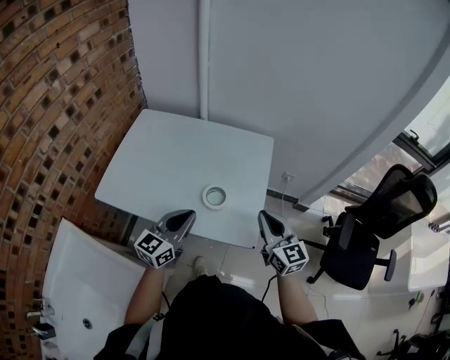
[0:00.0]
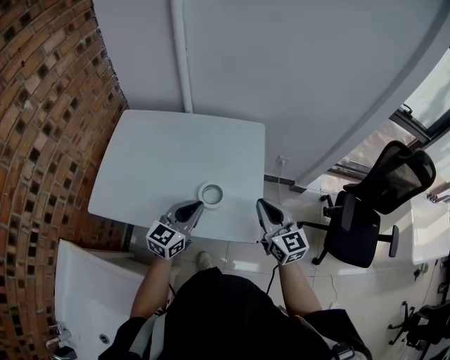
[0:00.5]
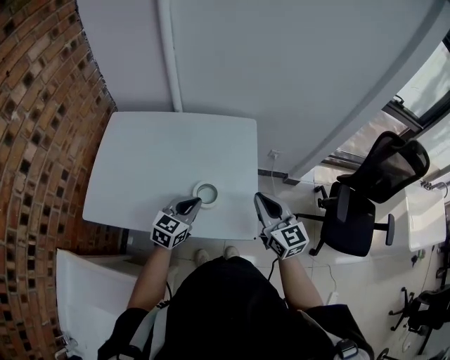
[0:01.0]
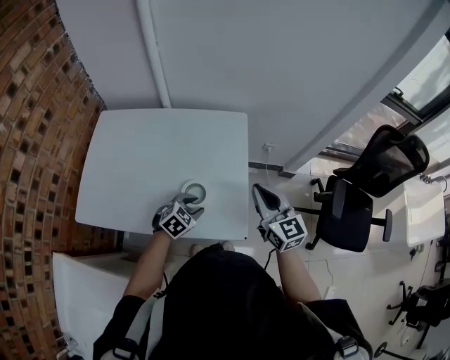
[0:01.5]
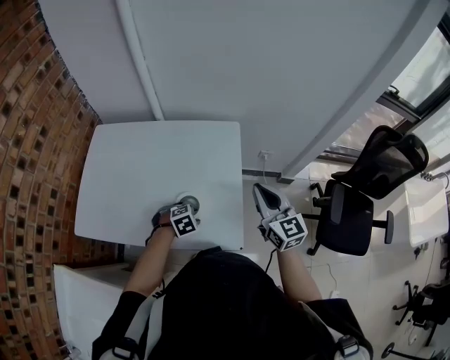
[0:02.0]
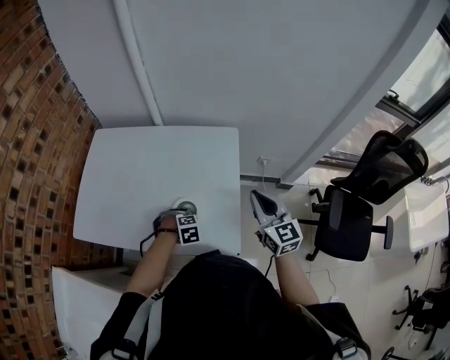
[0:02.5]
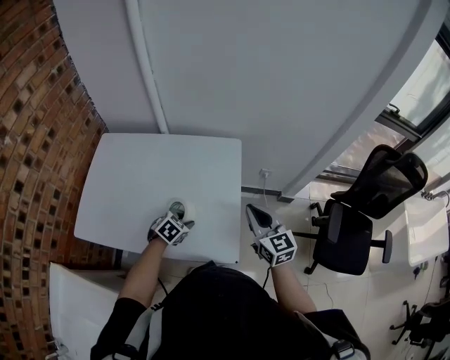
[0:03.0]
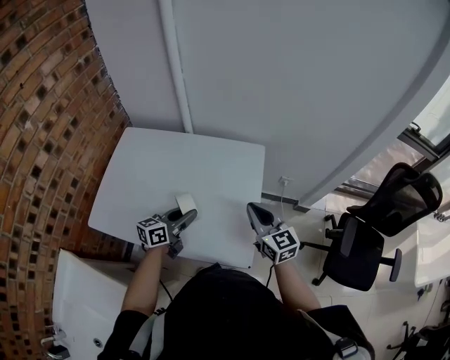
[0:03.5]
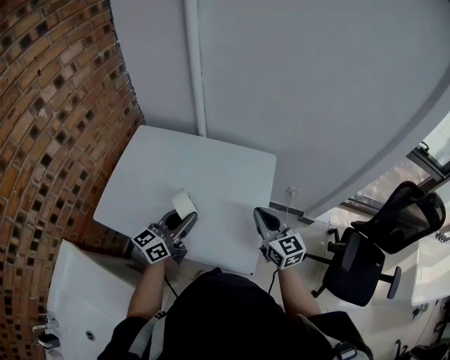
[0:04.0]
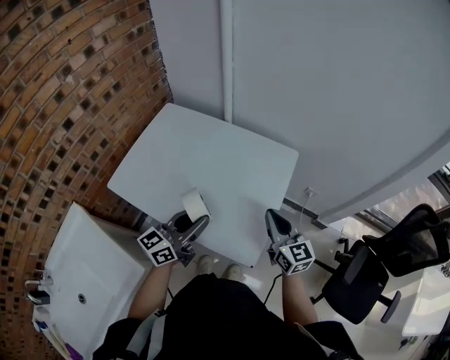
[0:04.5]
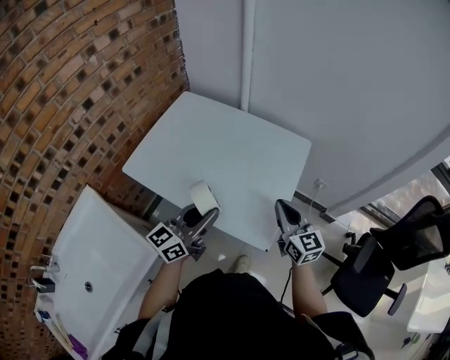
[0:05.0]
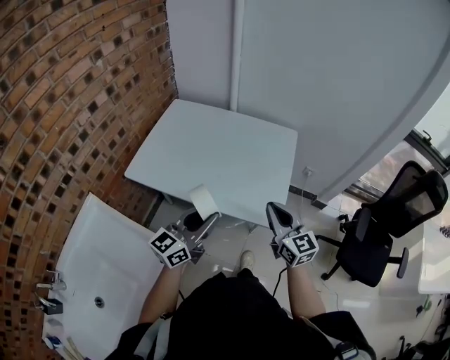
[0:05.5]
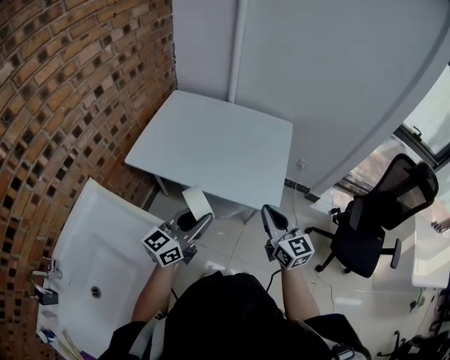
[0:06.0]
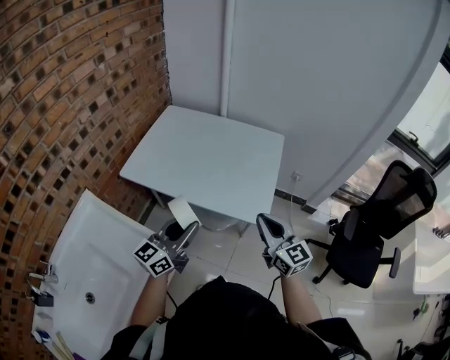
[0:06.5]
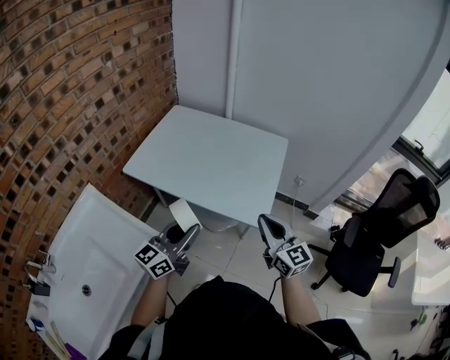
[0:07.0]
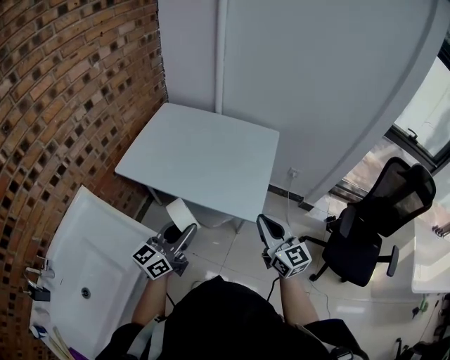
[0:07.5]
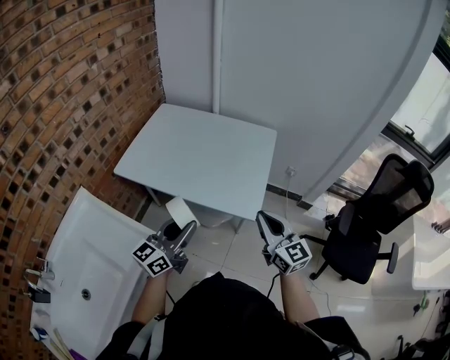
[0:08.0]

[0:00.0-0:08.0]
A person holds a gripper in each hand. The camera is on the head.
0:00.0 to 0:02.0: The left gripper travels downward by about 25 cm, tilts its fingers approximately 70 degrees downward, and opens, while the right gripper shifts by roughly 10 cm.
0:02.0 to 0:04.0: The left gripper shifts roughly 25 cm upward, and points its fingers roughly 70 degrees further upward; the right gripper shifts by approximately 10 cm.
0:04.0 to 0:06.0: The grippers both shift backward by some 25 cm.
0:06.0 to 0:08.0: The right gripper moves to the right, roughly 5 cm.

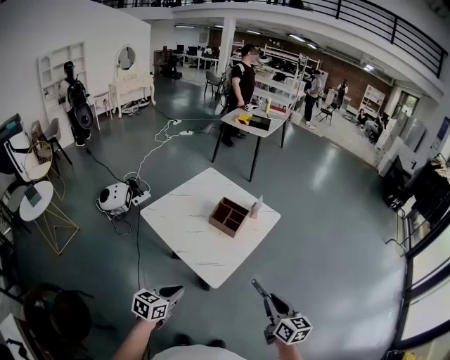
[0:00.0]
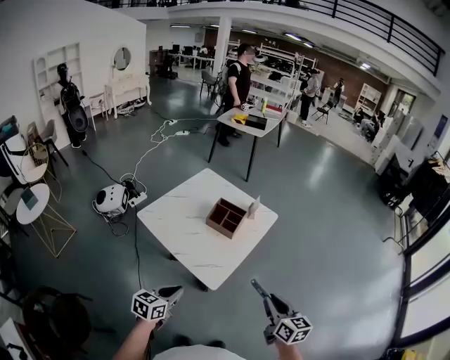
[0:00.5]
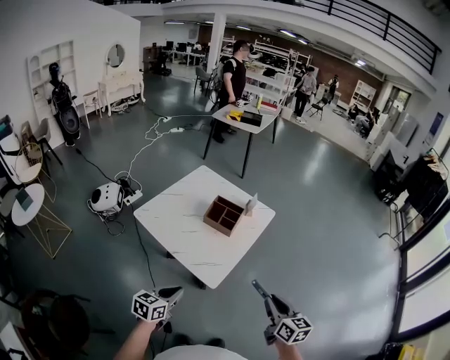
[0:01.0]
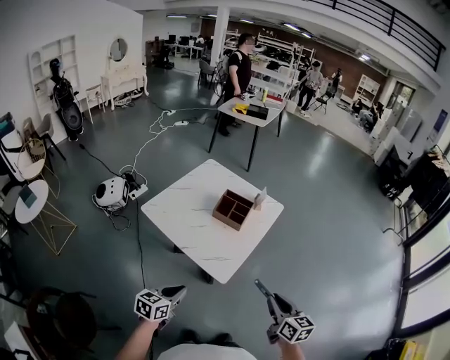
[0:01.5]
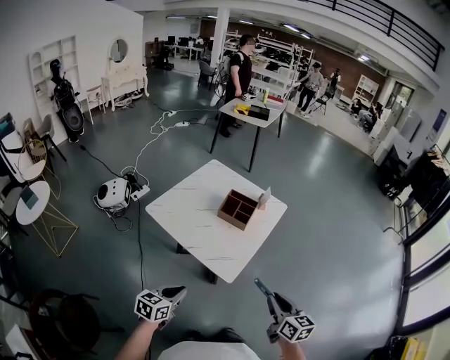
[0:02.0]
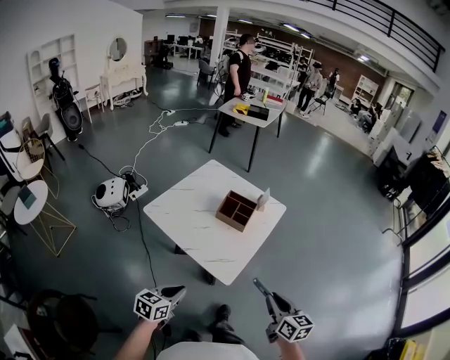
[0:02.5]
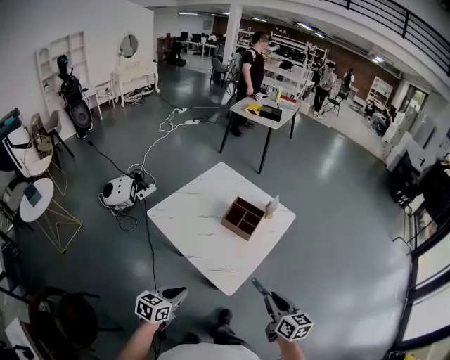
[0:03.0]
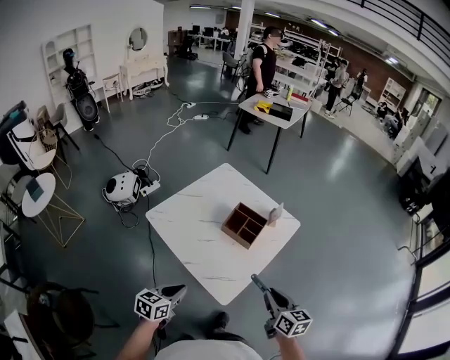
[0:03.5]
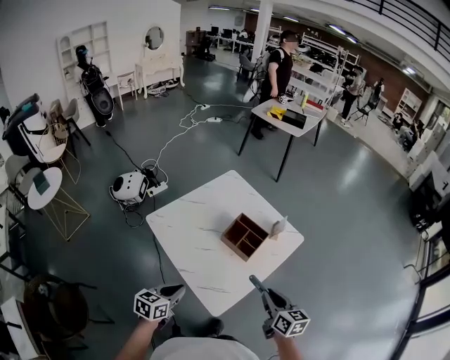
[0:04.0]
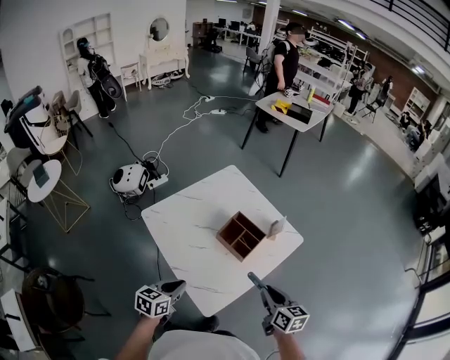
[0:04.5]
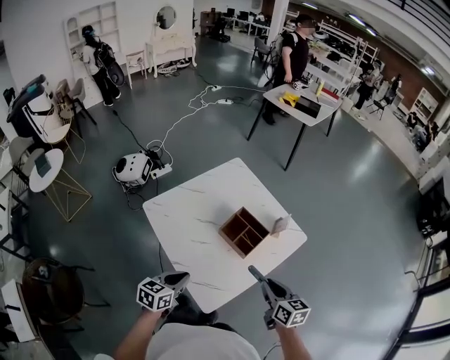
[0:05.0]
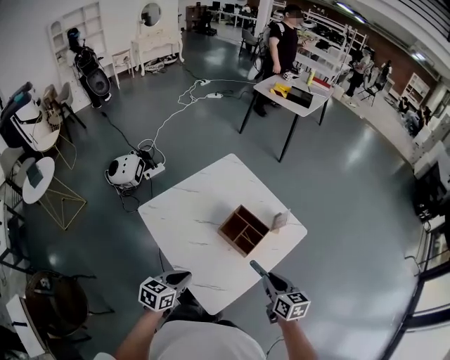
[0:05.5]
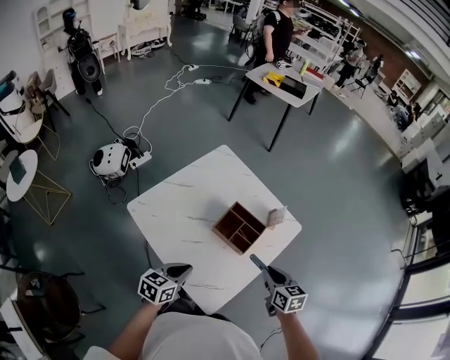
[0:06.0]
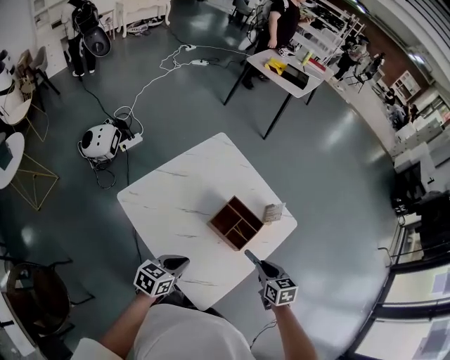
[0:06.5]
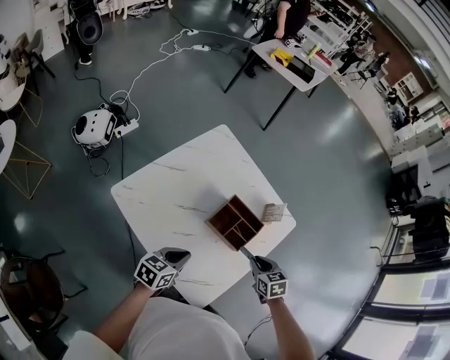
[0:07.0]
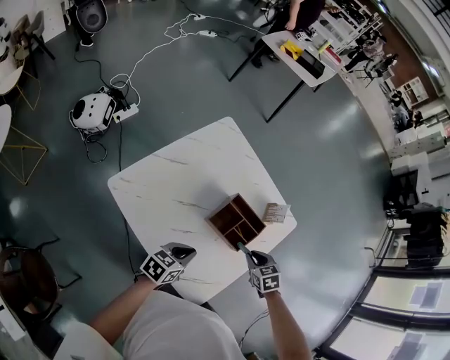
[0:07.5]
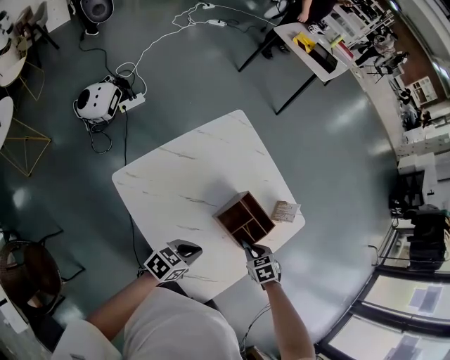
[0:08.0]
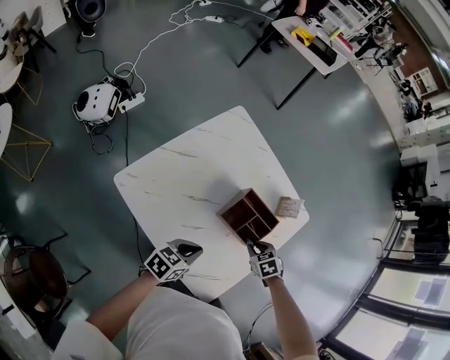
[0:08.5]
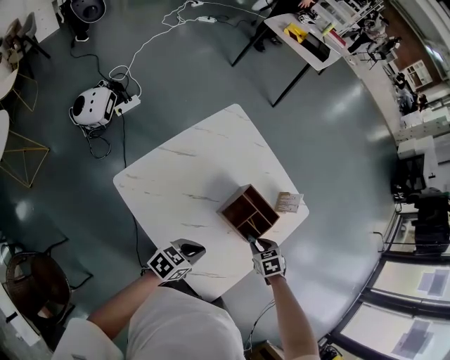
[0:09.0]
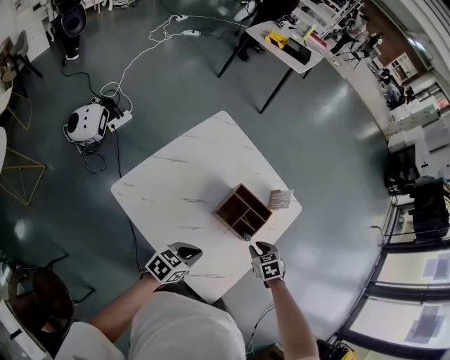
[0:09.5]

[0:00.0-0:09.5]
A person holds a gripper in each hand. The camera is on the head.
0:00.0 to 0:02.0: The two grippers go roughly 5 cm to the left.
0:02.0 to 0:04.0: The two grippers go about 25 cm forward.
0:04.0 to 0:05.5: Both grippers move forward, roughly 10 cm.
0:05.5 to 0:07.5: The left gripper heads forward and downward, covering approximately 15 cm, and swivels approximately 20 degrees; the right gripper is displaced downward, forward and to the left by roughly 20 cm, and tips its fingers downward by some 30 degrees.

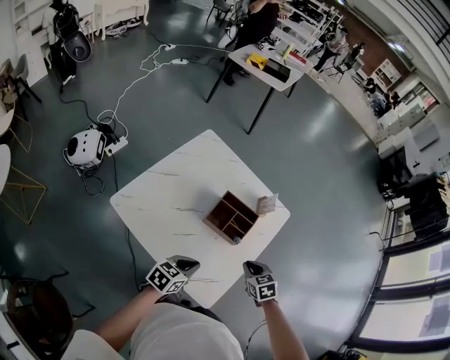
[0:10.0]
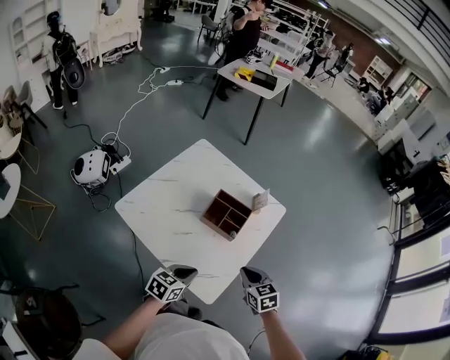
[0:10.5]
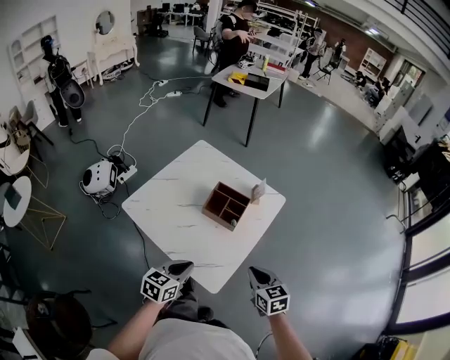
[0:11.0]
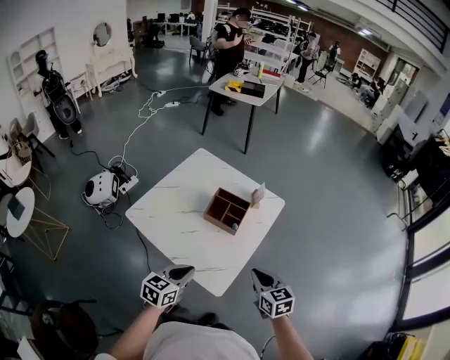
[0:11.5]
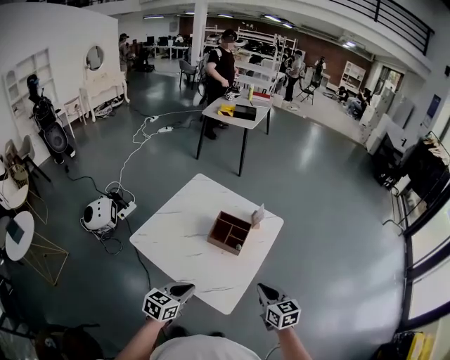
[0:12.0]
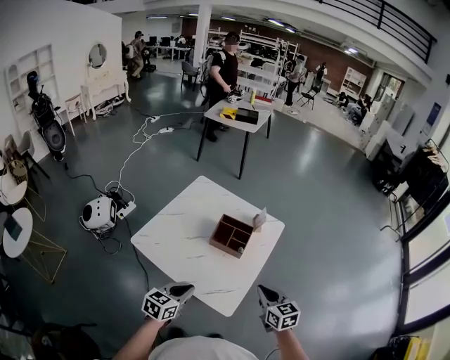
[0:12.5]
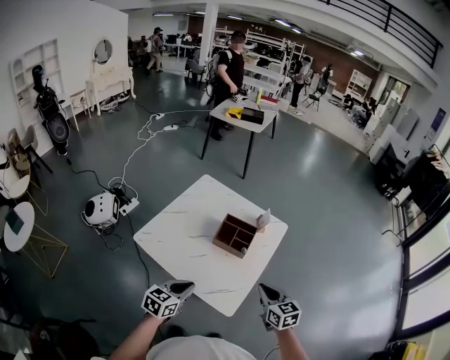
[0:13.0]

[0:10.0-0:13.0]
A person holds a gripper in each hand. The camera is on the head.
0:10.0 to 0:11.5: Both grippers move backward and upward, roughly 20 cm. The right gripper turns by some 30 degrees.
0:11.5 to 0:13.0: The left gripper goes roughly 5 cm to the left.

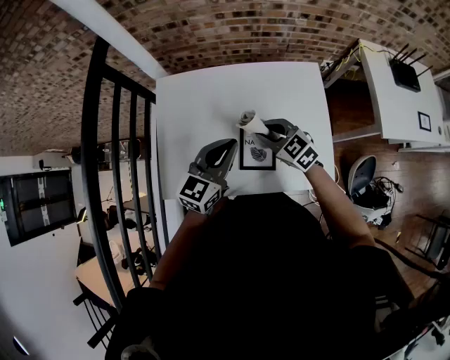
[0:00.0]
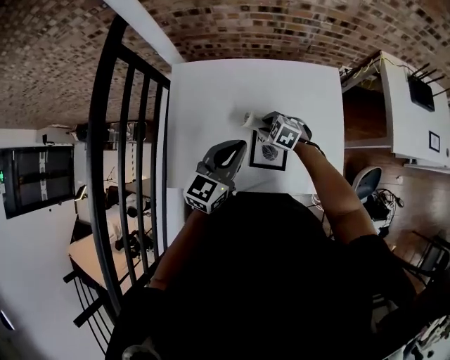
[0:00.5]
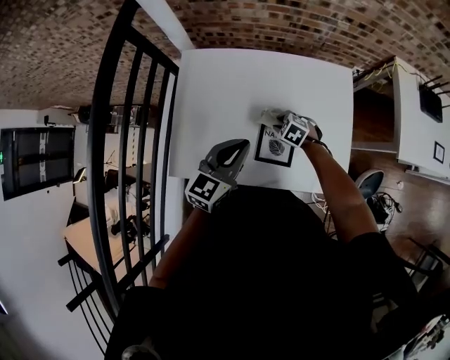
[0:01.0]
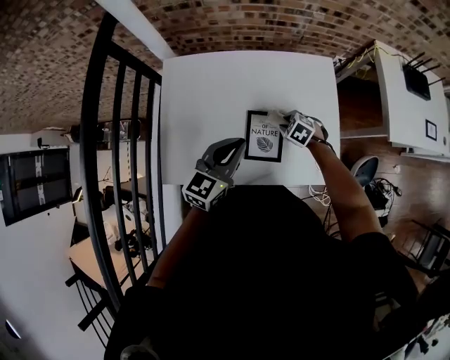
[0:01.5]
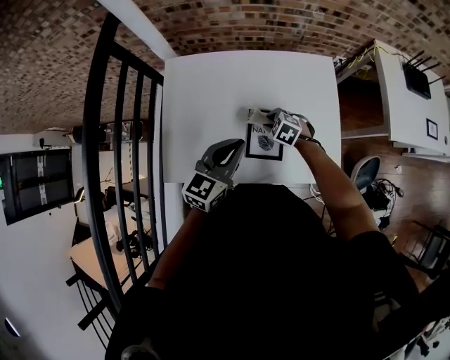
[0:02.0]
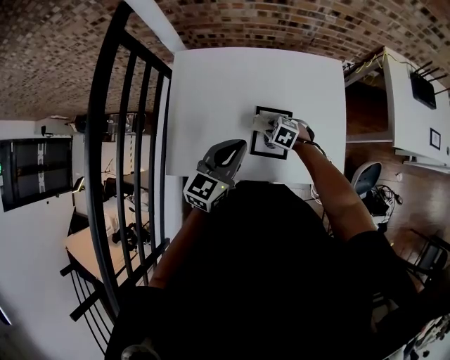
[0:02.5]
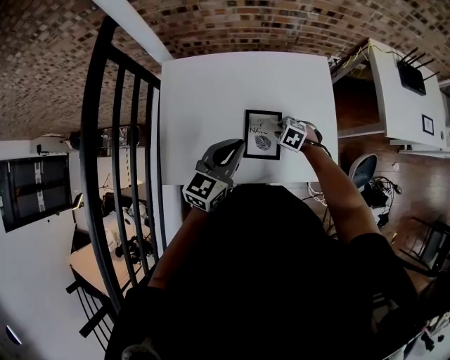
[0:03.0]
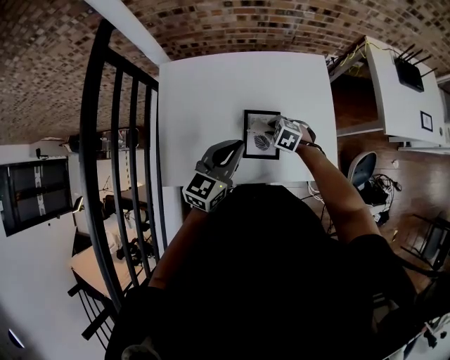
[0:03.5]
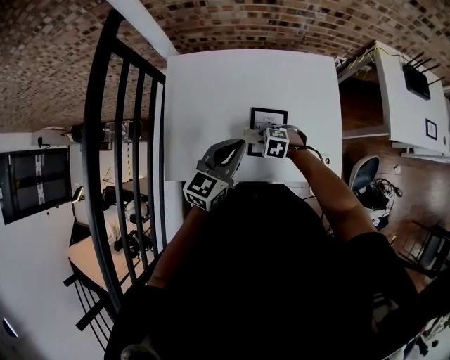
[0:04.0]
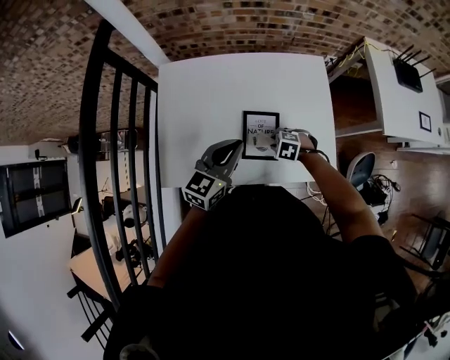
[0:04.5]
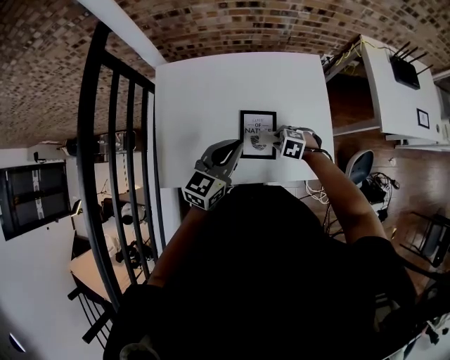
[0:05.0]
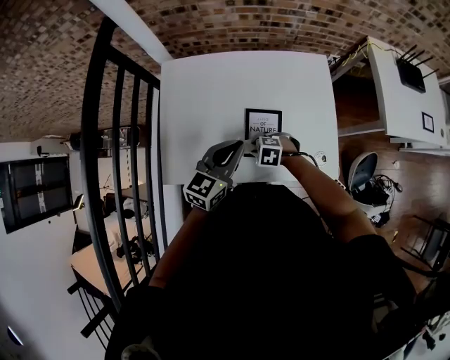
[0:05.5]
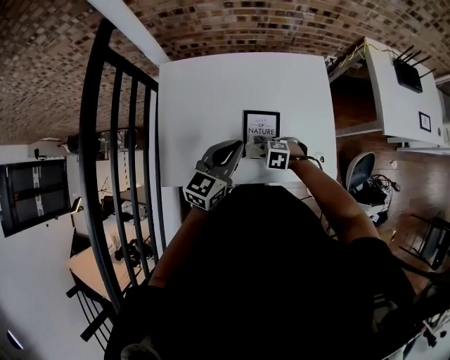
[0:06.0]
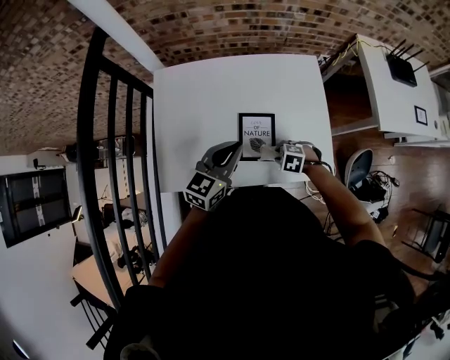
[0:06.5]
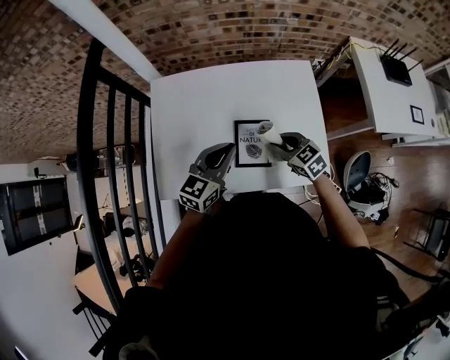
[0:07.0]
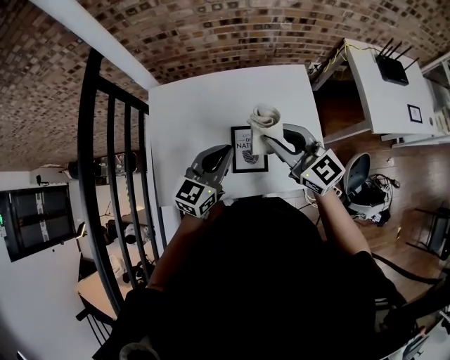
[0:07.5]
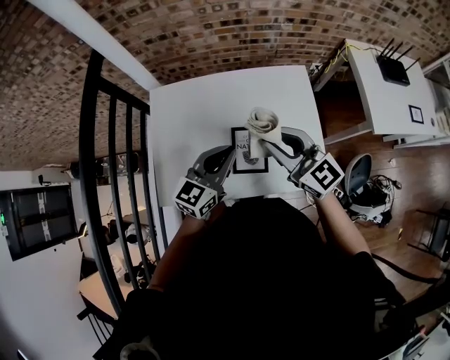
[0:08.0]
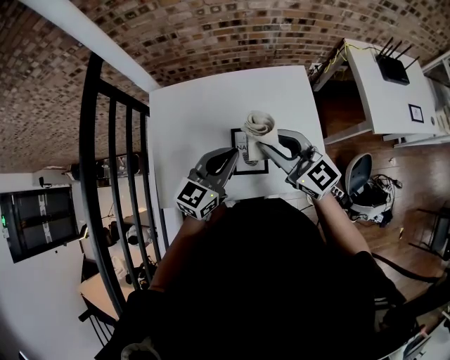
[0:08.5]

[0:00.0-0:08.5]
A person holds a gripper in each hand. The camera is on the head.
0:00.0 to 0:02.0: The right gripper moves downward, some 15 cm, and angles its fingers downward, by some 30 degrees.
0:02.0 to 0:04.0: The right gripper is displaced backward and to the left by some 10 cm.
0:04.0 to 0:06.5: The right gripper changes place by approximately 10 cm.
0:06.5 to 0:08.5: The left gripper heads upward, covering roughly 5 cm; the right gripper goes about 35 cm upward, and tilts its fingers some 70 degrees upward.
